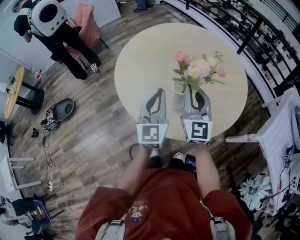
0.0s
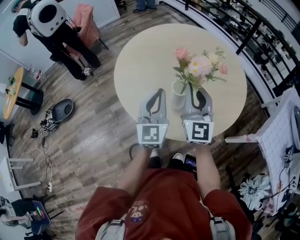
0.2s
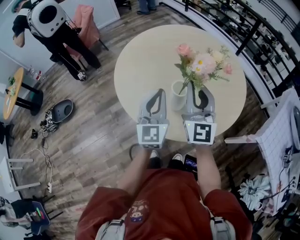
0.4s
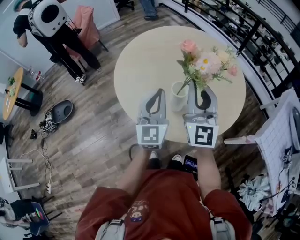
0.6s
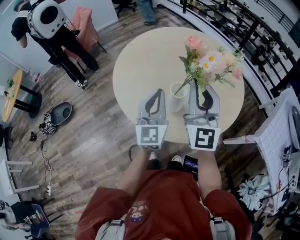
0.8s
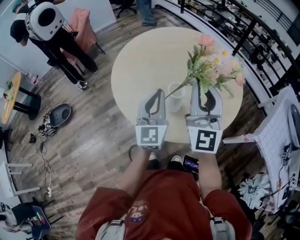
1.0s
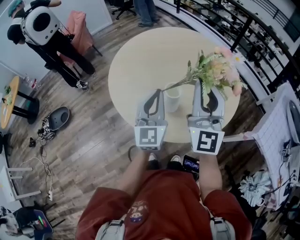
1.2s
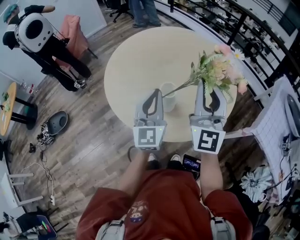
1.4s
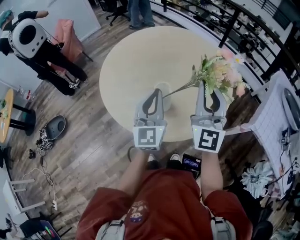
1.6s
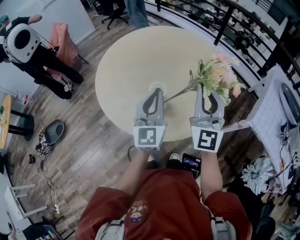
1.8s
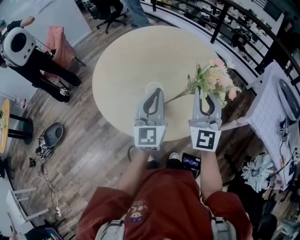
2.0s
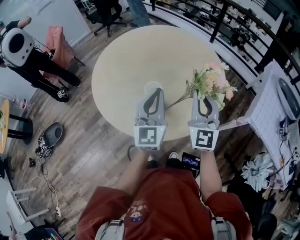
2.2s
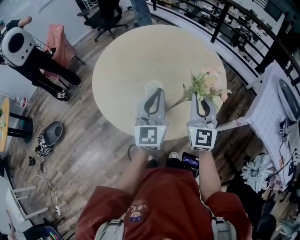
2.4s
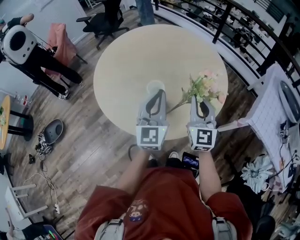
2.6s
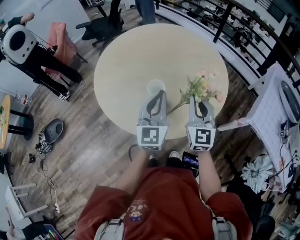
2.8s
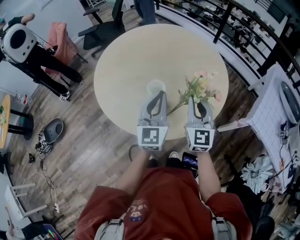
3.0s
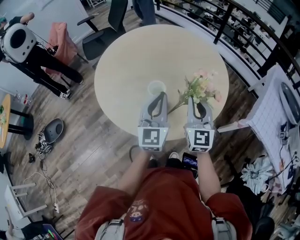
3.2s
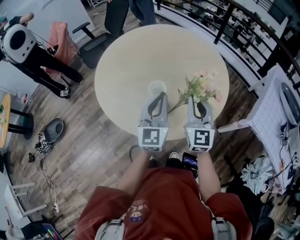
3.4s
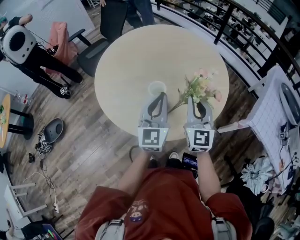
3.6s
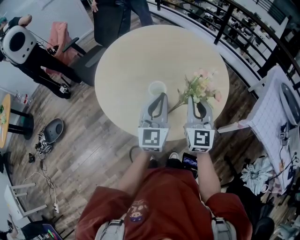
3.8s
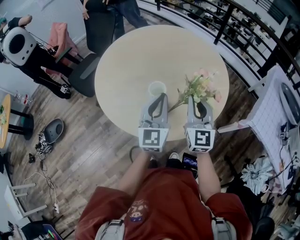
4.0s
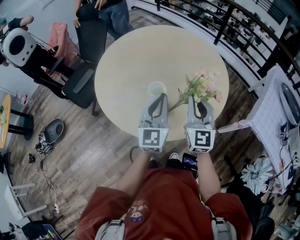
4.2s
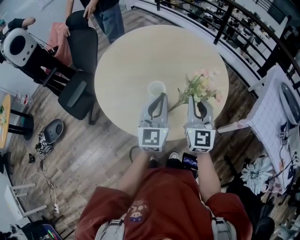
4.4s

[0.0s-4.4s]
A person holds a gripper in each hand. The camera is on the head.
0.0s to 1.4s: The right gripper heads upward and to the right, covering approximately 15 cm.
1.4s to 3.0s: The left gripper goes approximately 5 cm to the right. Meanwhile the right gripper shifts about 15 cm downward, and turns by some 20 degrees.
3.0s to 4.4s: The grippers stay close to where they were, moving slightly.

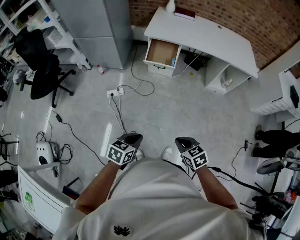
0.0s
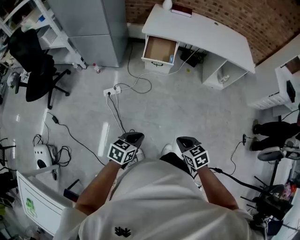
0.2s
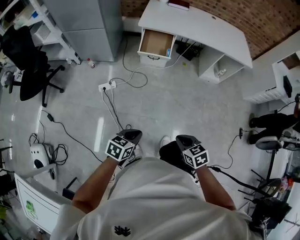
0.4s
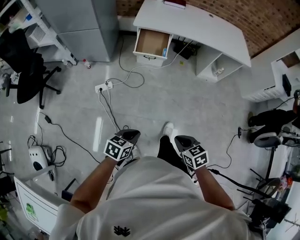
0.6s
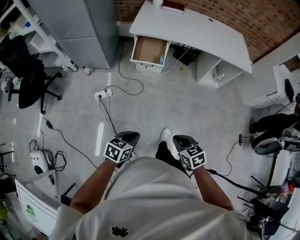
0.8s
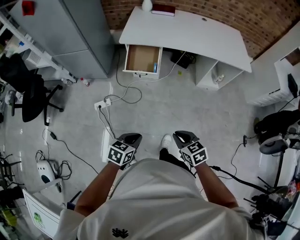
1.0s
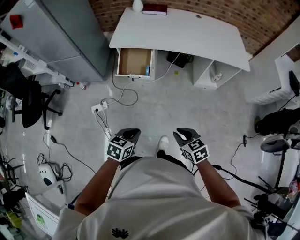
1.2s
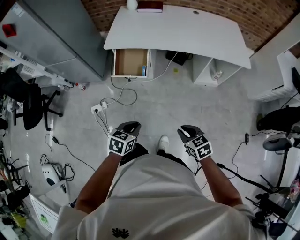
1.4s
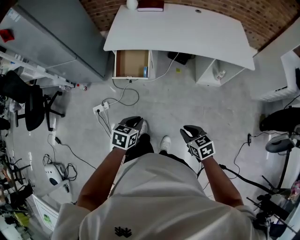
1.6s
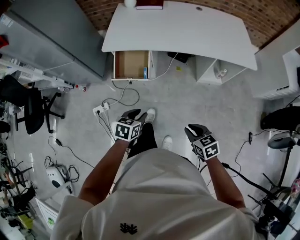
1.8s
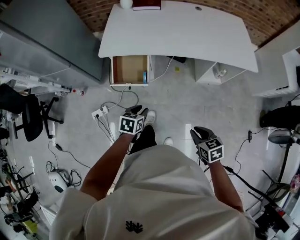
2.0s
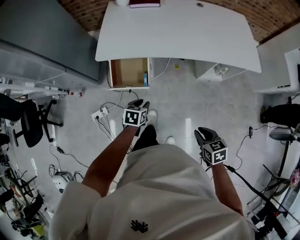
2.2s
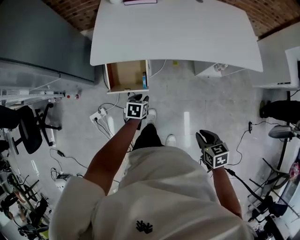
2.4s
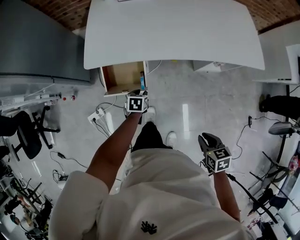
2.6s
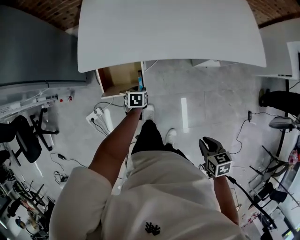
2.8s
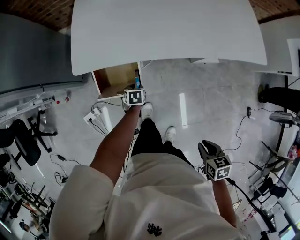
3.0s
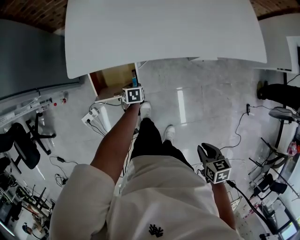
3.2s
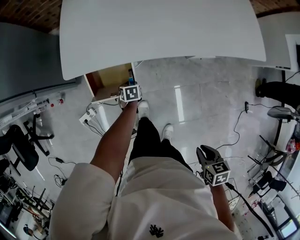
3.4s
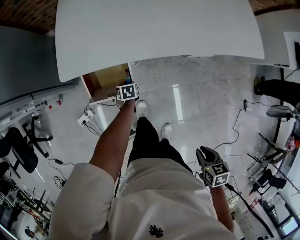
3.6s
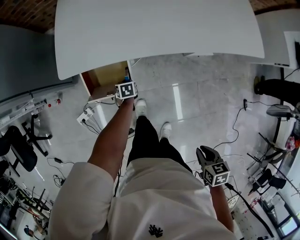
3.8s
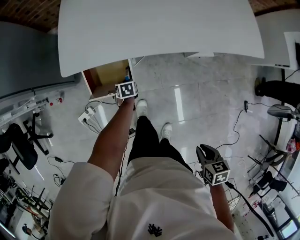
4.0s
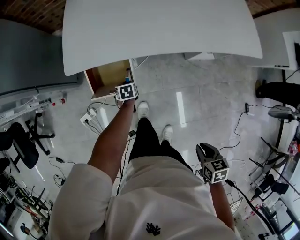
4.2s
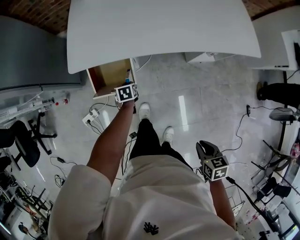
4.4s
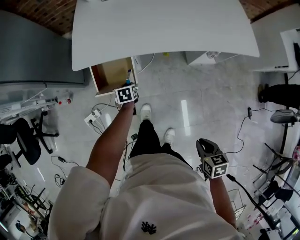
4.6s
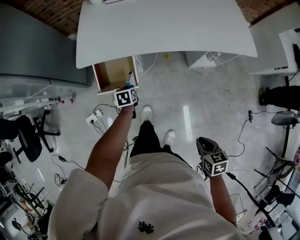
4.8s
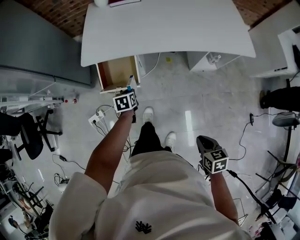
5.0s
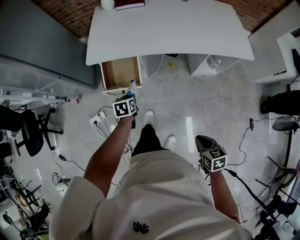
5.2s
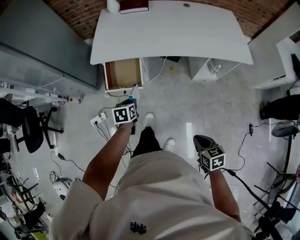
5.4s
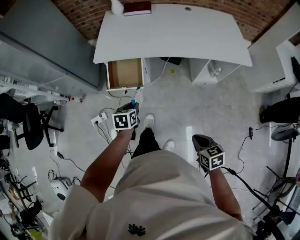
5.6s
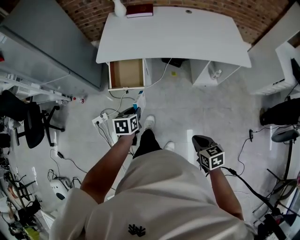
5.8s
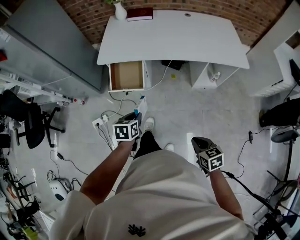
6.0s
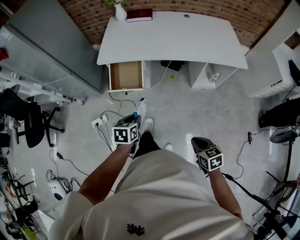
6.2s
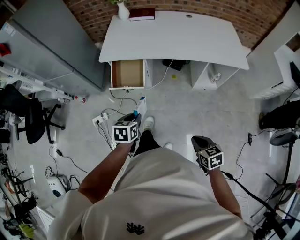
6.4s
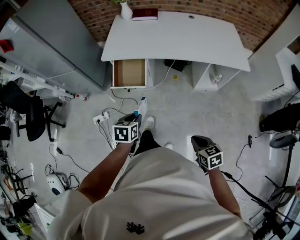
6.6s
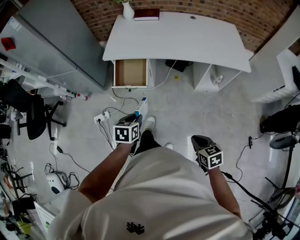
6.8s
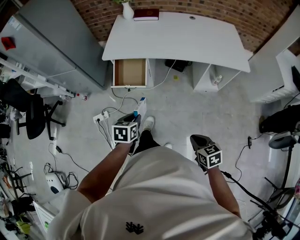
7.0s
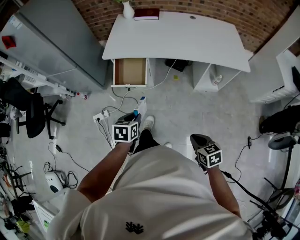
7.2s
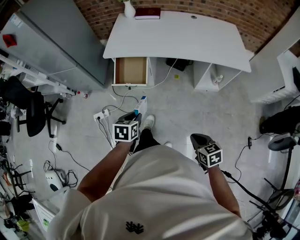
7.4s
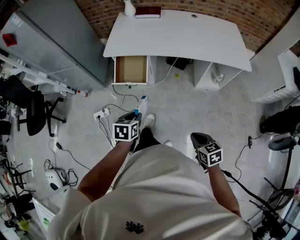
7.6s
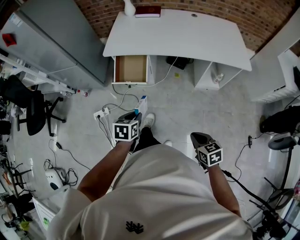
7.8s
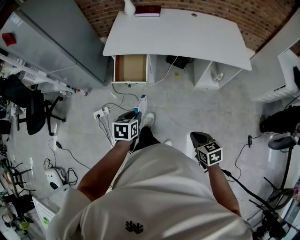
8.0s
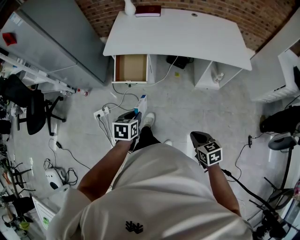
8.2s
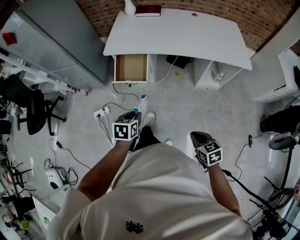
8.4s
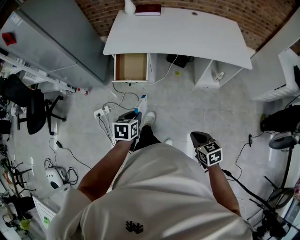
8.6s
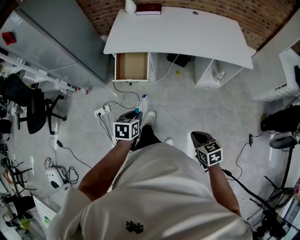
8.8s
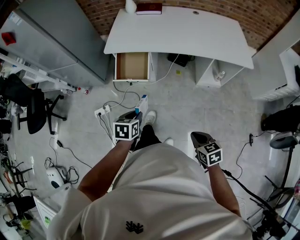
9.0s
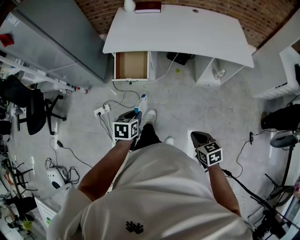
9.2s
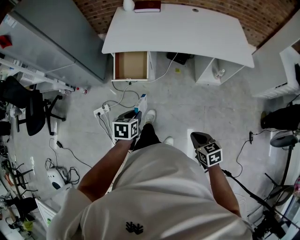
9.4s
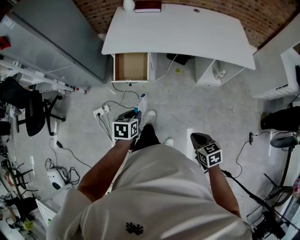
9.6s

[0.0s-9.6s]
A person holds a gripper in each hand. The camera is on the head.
0.0s to 1.6s: The two grippers travel together, forward and to the right, roughly 40 cm.
1.6s to 3.2s: The right gripper shifts about 20 cm forward, and swivels approximately 40 degrees, while the left gripper heads forward and downward, covering approximately 60 cm, changes its angle by some 20 degrees, and opens up.
3.2s to 4.8s: The right gripper goes about 10 cm backward; the left gripper heads upward and backward, covering approximately 15 cm.
4.8s to 6.4s: The right gripper shifts roughly 15 cm backward and upward. The left gripper moves backward and upward, about 35 cm.
6.4s to 9.6s: There are only small adjustments of the grippers.

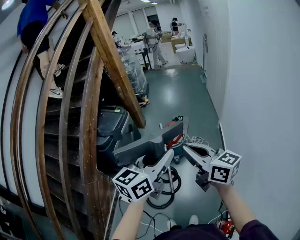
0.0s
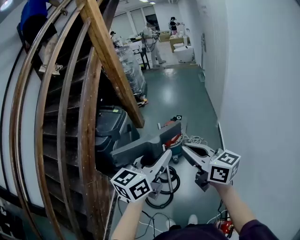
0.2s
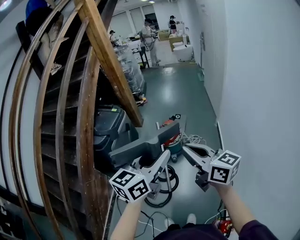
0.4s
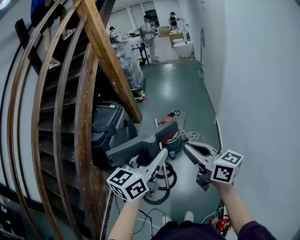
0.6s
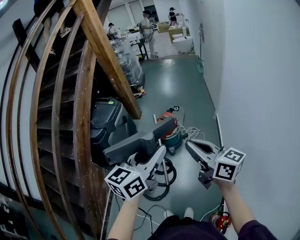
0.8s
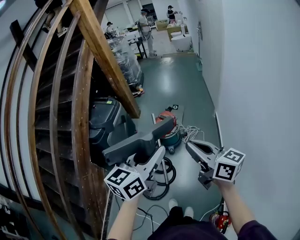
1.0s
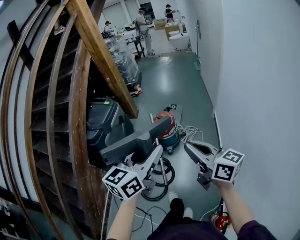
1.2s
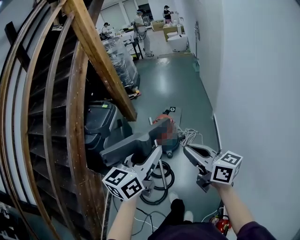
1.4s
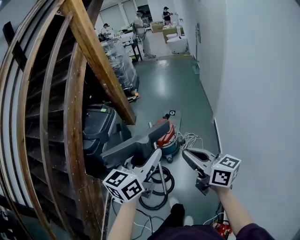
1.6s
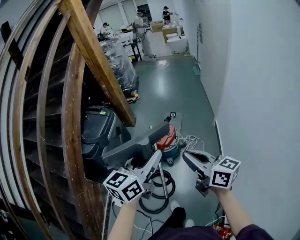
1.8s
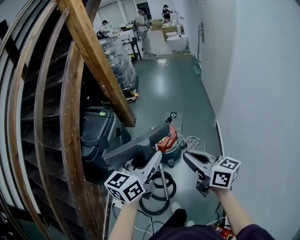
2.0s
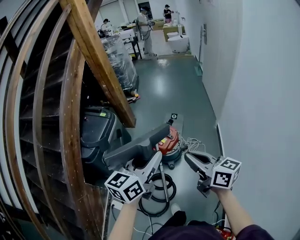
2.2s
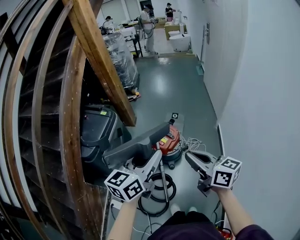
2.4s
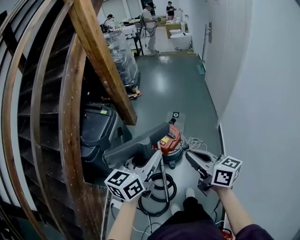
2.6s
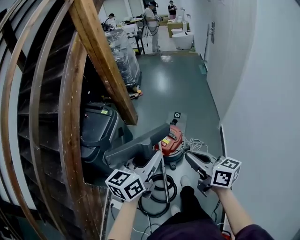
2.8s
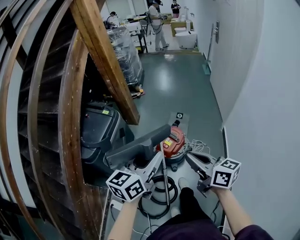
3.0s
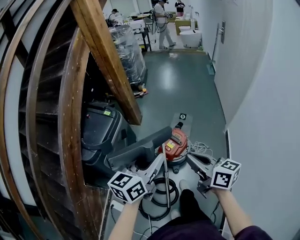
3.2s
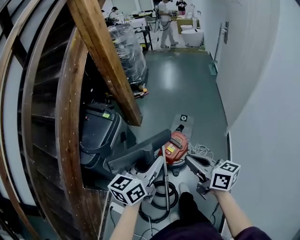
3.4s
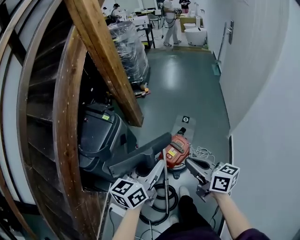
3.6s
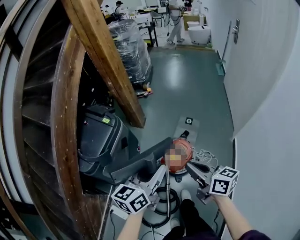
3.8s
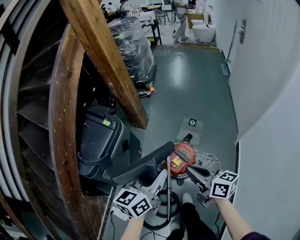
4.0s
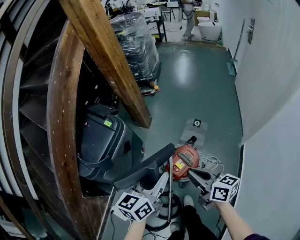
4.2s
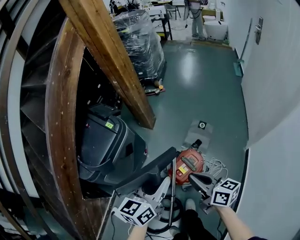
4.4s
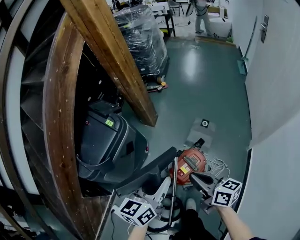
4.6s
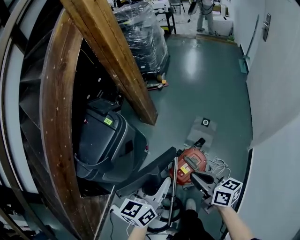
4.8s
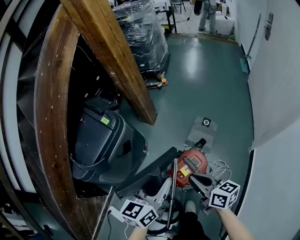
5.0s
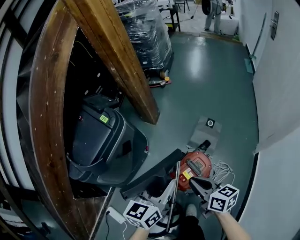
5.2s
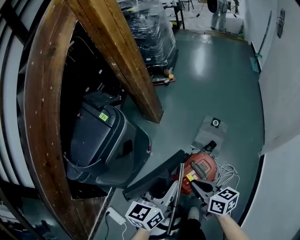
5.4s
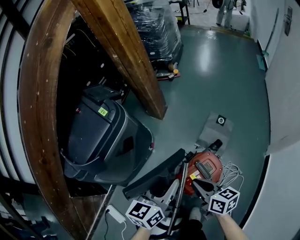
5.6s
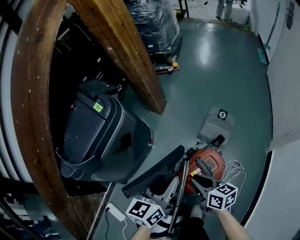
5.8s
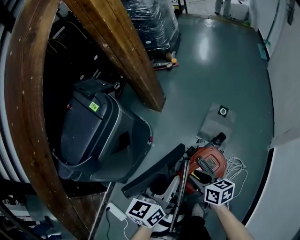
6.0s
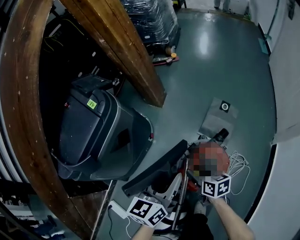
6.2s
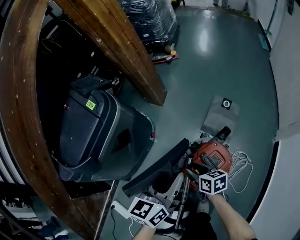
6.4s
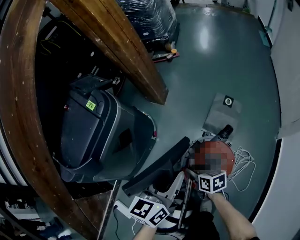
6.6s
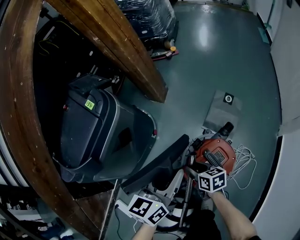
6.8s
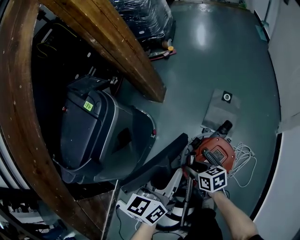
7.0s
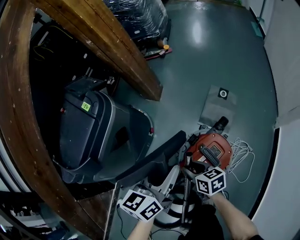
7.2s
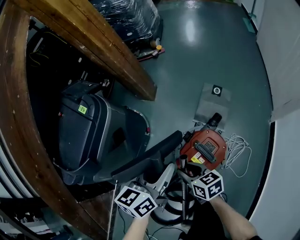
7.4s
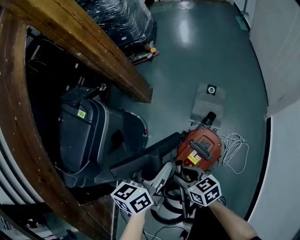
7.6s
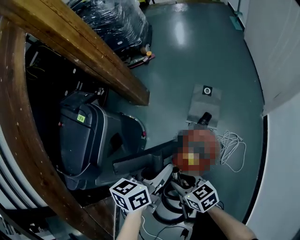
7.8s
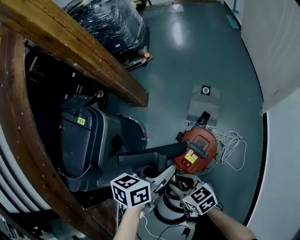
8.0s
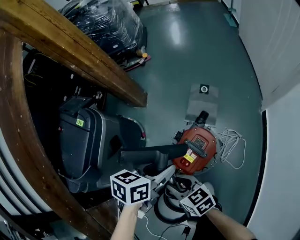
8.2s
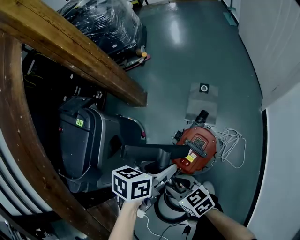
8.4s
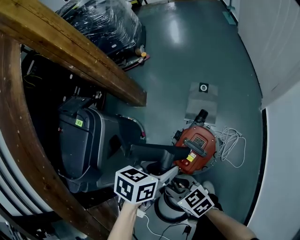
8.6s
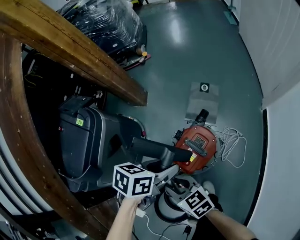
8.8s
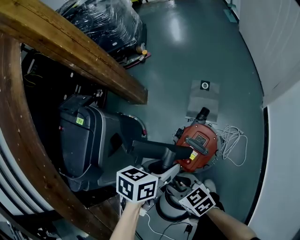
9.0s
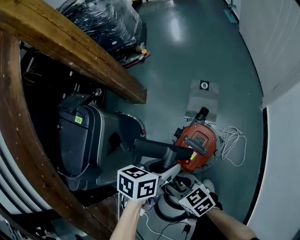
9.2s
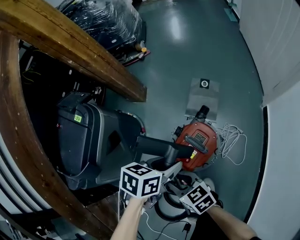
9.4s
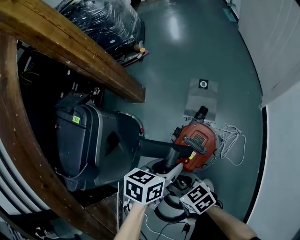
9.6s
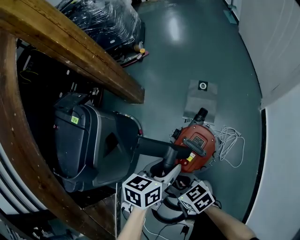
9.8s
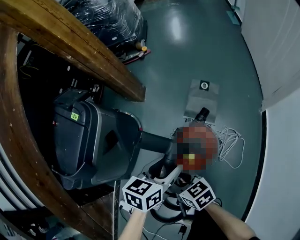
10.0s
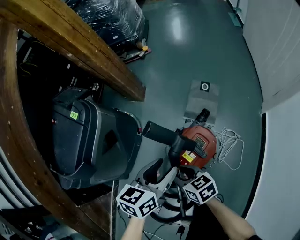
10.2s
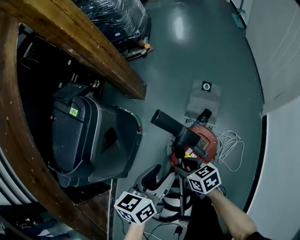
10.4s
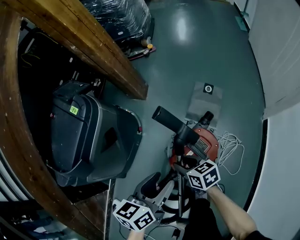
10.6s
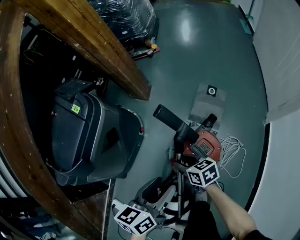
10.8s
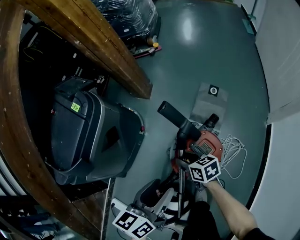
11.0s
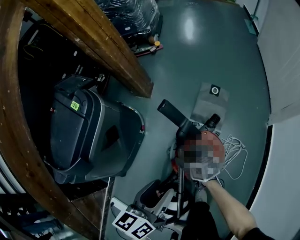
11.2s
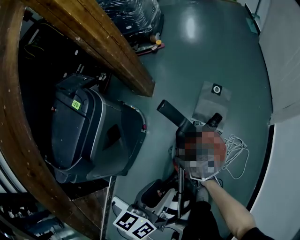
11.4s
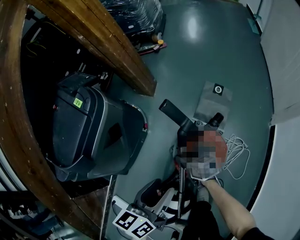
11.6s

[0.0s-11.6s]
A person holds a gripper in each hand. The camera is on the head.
0.0s to 1.4s: The left gripper heads forward, covering approximately 5 cm. The right gripper is displaced to the right and downward by roughly 10 cm.
1.4s to 2.8s: The left gripper goes approximately 25 cm forward and to the left; the right gripper heads forward, covering about 20 cm.
2.8s to 4.4s: Both grippers move forward and downward, some 30 cm.
4.4s to 5.8s: Both grippers travel together downward, some 25 cm.
5.8s to 7.2s: The right gripper travels downward by approximately 10 cm, and opens up.
7.2s to 8.8s: The left gripper changes place by approximately 10 cm, and changes its angle by approximately 50 degrees; the right gripper goes about 15 cm upward.
8.8s to 10.2s: The right gripper travels downward by about 5 cm, while the left gripper rotates approximately 30 degrees.
10.2s to 11.6s: The left gripper heads to the left, covering approximately 5 cm, while the right gripper travels downward and forward by approximately 15 cm.
